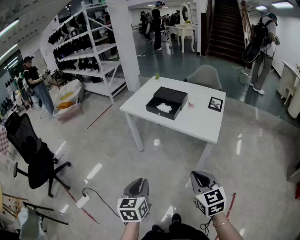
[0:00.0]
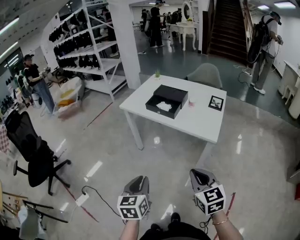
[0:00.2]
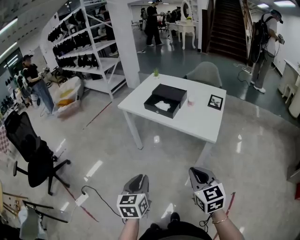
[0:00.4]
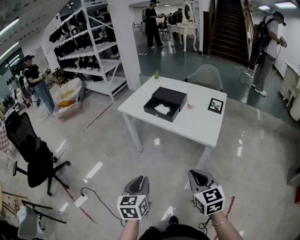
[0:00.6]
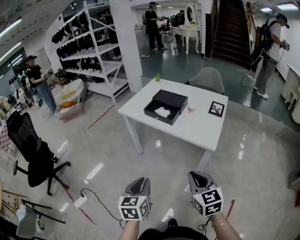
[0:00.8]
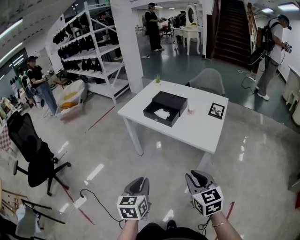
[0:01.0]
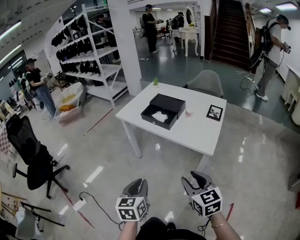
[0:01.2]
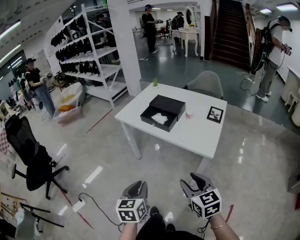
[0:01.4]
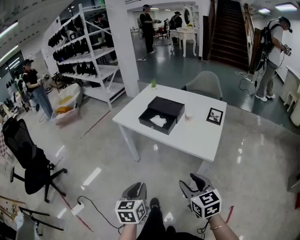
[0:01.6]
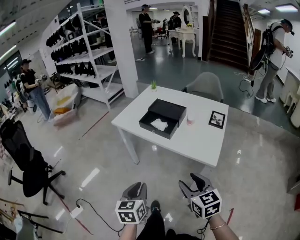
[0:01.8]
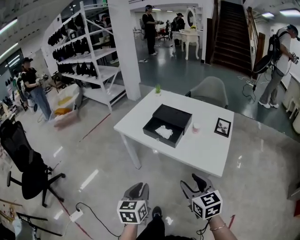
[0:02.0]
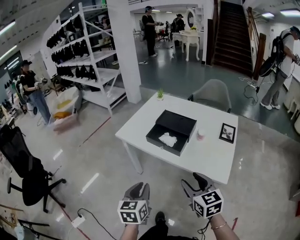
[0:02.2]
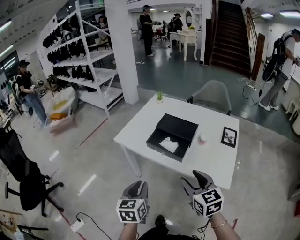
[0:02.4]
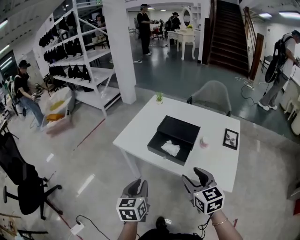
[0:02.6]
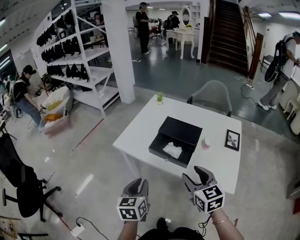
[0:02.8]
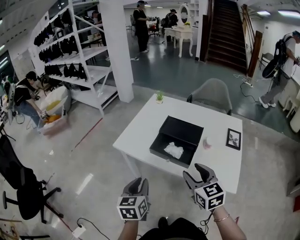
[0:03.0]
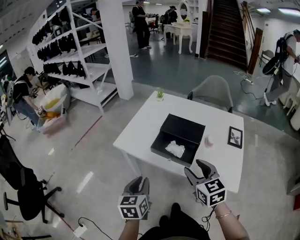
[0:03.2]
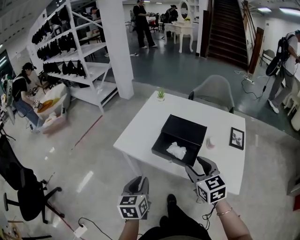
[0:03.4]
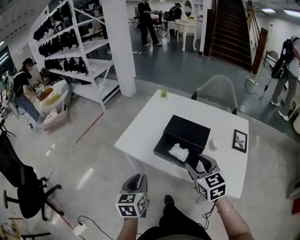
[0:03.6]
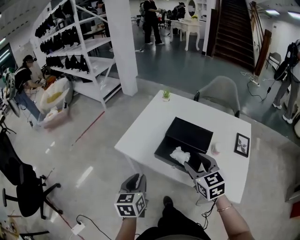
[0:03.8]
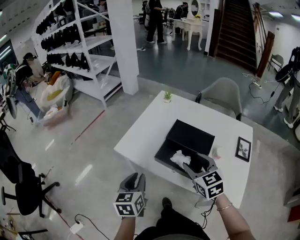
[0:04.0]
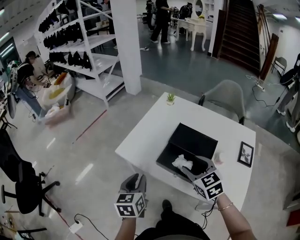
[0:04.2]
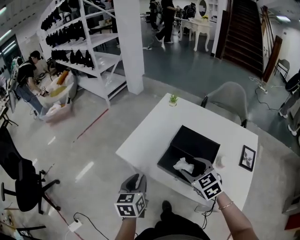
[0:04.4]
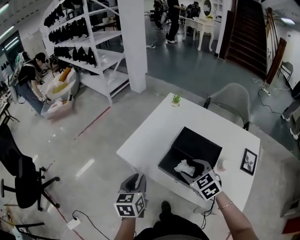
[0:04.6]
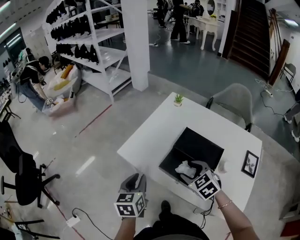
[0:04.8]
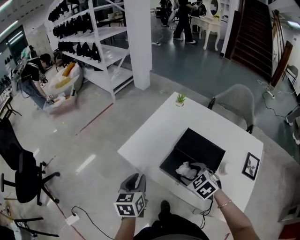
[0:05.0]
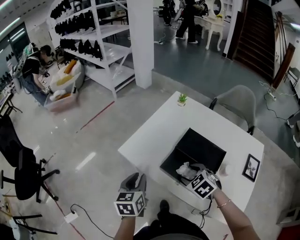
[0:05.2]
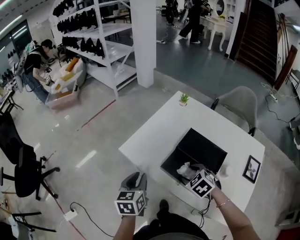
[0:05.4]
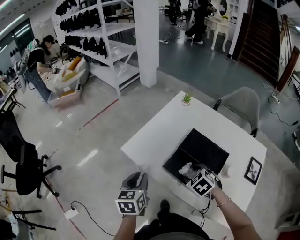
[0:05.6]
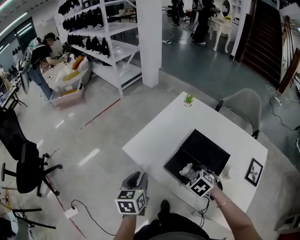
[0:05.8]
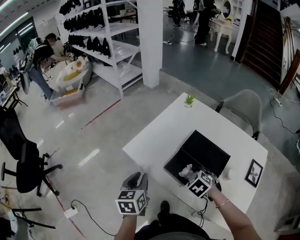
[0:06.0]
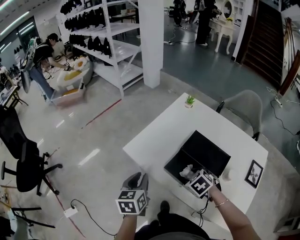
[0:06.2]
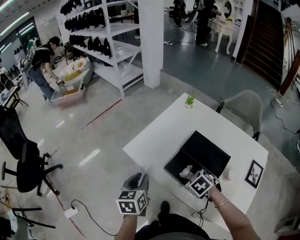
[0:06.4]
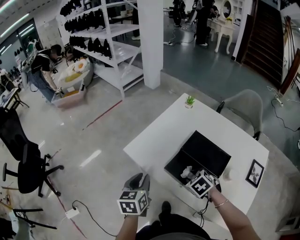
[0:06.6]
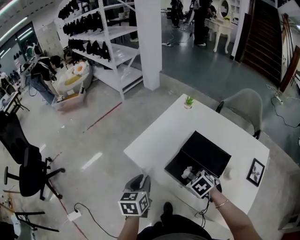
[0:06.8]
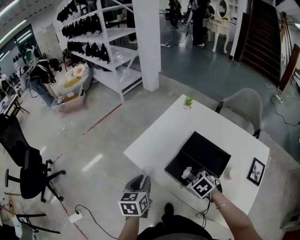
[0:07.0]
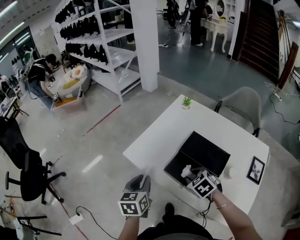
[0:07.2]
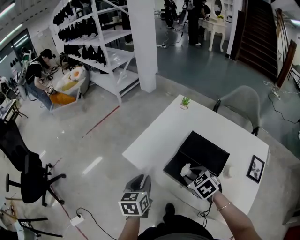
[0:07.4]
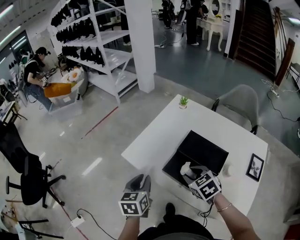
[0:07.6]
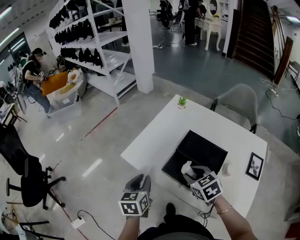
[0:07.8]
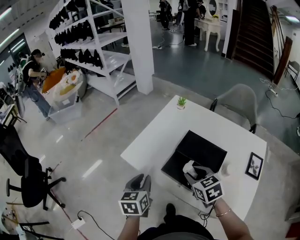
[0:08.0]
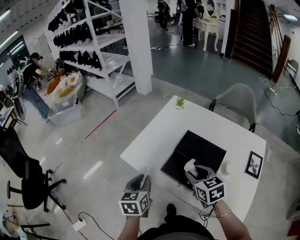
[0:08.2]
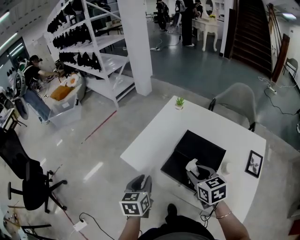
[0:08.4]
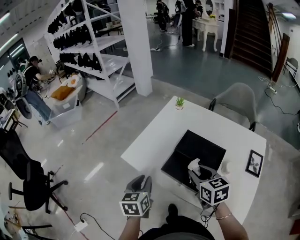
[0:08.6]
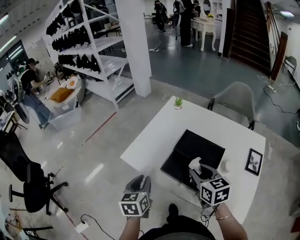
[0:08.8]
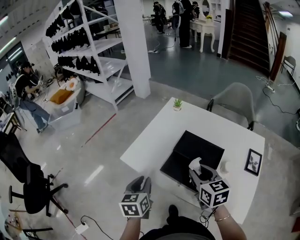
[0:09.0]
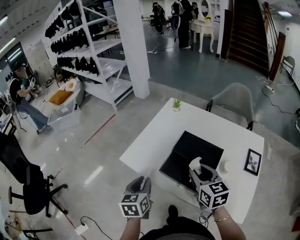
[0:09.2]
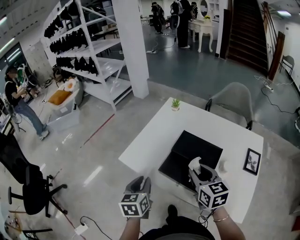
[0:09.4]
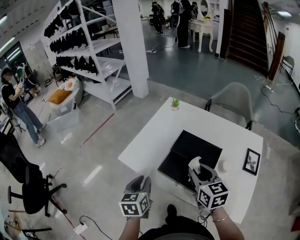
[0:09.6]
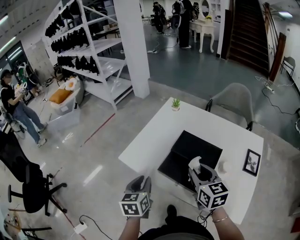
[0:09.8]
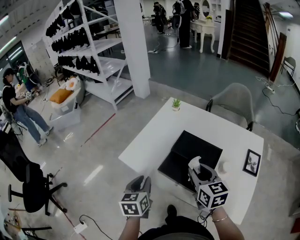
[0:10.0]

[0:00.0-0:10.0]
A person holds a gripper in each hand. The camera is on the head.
0:00.0 to 0:01.4: The right gripper is displaced forward by some 10 cm, and opens up, while the left gripper shifts approximately 10 cm forward and to the right.
0:01.4 to 0:02.8: Both grippers move forward, roughly 30 cm.
0:02.8 to 0:04.2: The two grippers go approximately 15 cm forward.
0:04.2 to 0:05.8: The right gripper travels downward by some 15 cm, and angles its fingers downward, by roughly 30 degrees.
0:05.8 to 0:07.2: The right gripper closes its fingers.
0:07.2 to 0:08.6: The right gripper heads upward, covering roughly 10 cm, and changes its angle by some 40 degrees.
0:08.6 to 0:10.0: The grippers move only a little.

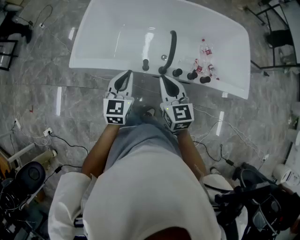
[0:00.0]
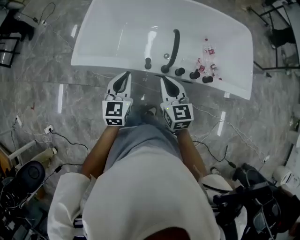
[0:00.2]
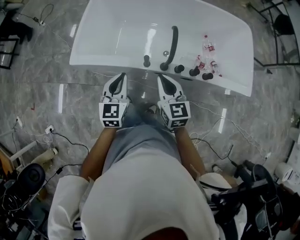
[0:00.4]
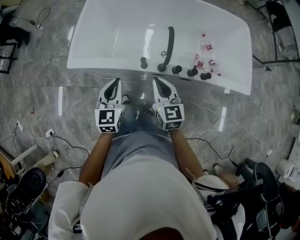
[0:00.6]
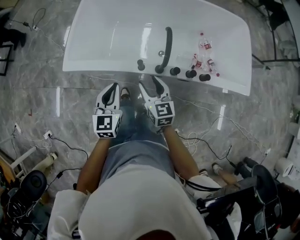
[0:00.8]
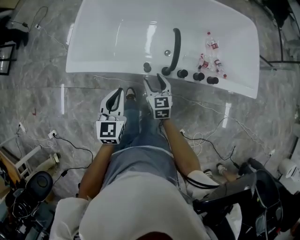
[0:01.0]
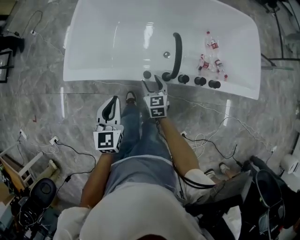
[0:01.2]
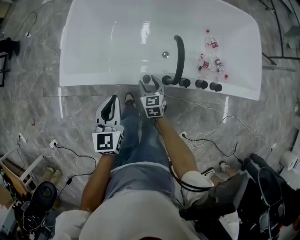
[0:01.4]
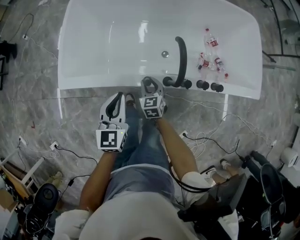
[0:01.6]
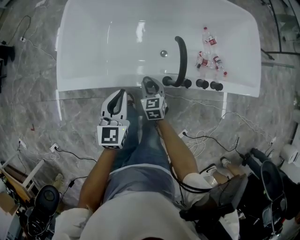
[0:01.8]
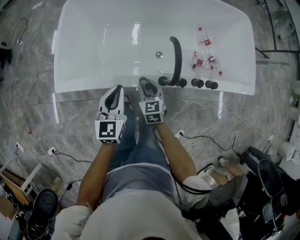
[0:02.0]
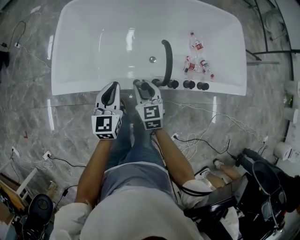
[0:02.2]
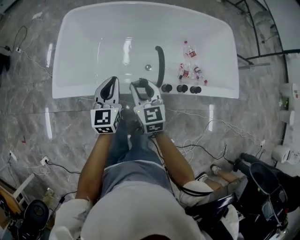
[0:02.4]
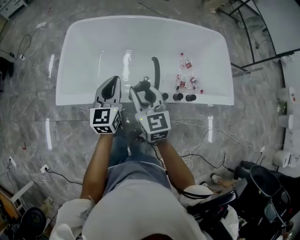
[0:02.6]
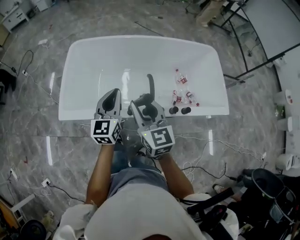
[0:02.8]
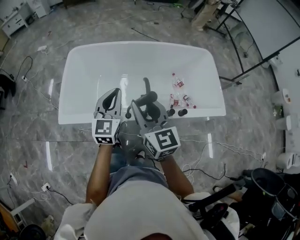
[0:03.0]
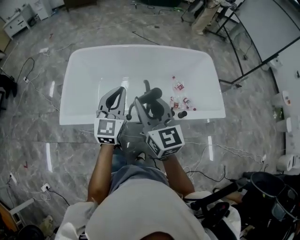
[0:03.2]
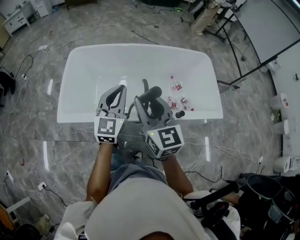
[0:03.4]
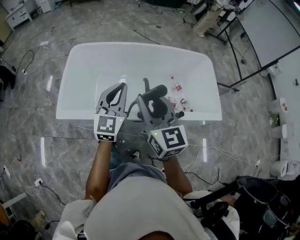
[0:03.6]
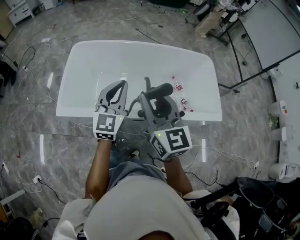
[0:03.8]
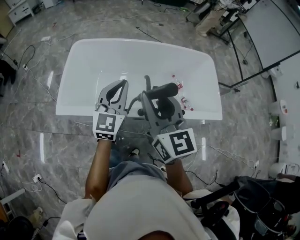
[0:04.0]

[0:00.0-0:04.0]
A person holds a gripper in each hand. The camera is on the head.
0:00.0 to 0:01.4: The left gripper travels downward by roughly 20 cm, while the right gripper is displaced downward by some 40 cm, and opens up.
0:01.4 to 0:02.6: The left gripper travels upward and forward by some 25 cm, while the right gripper moves upward, roughly 40 cm, and closes up.
0:02.6 to 0:04.0: The two grippers go approximately 25 cm upward.

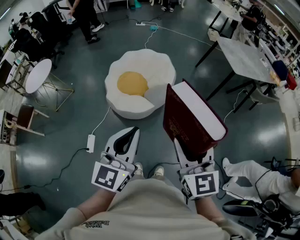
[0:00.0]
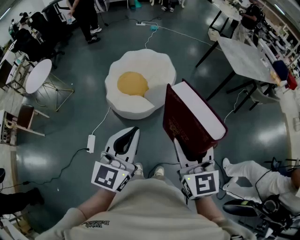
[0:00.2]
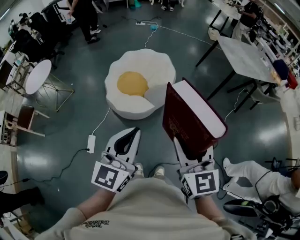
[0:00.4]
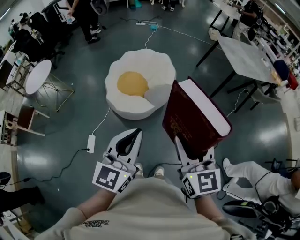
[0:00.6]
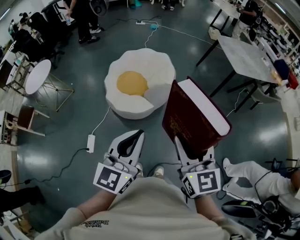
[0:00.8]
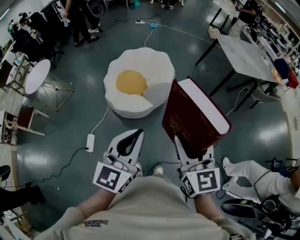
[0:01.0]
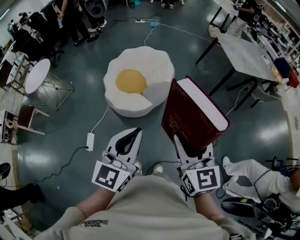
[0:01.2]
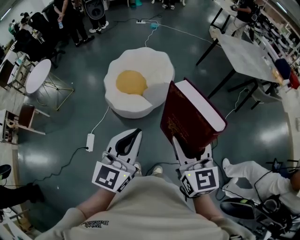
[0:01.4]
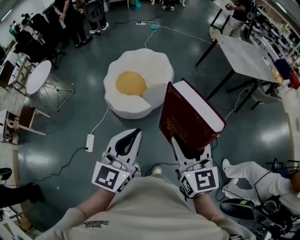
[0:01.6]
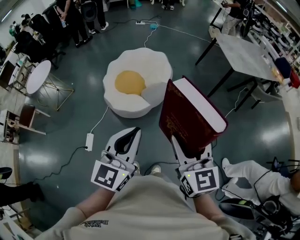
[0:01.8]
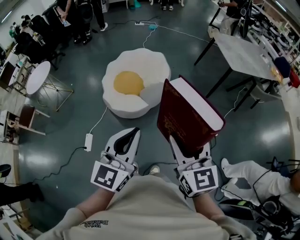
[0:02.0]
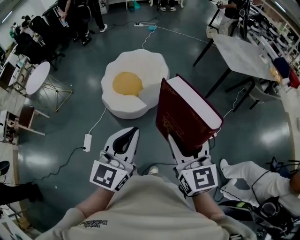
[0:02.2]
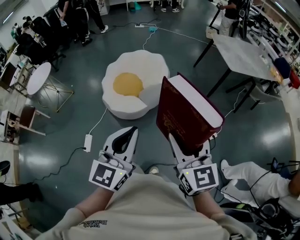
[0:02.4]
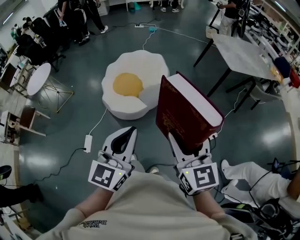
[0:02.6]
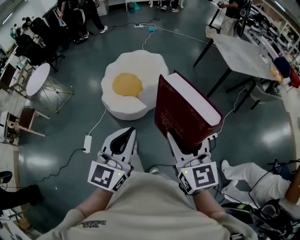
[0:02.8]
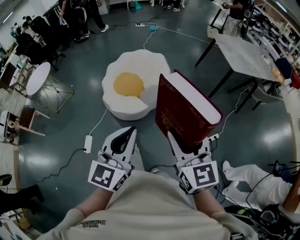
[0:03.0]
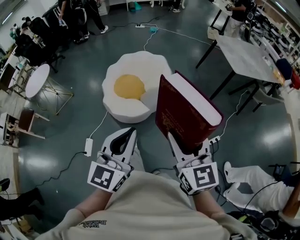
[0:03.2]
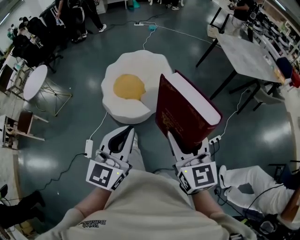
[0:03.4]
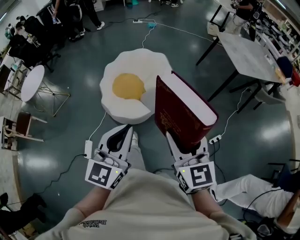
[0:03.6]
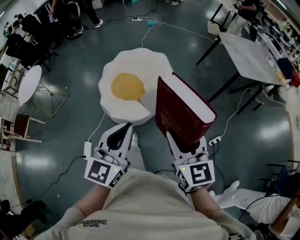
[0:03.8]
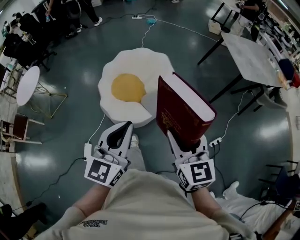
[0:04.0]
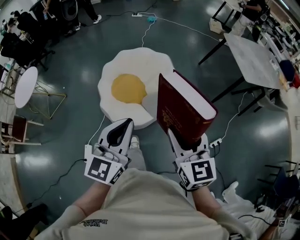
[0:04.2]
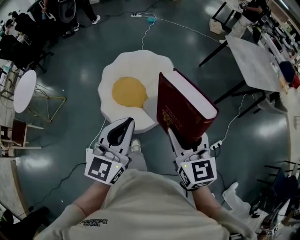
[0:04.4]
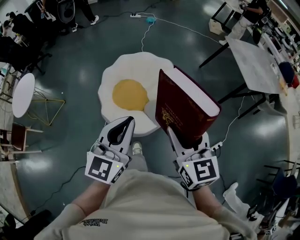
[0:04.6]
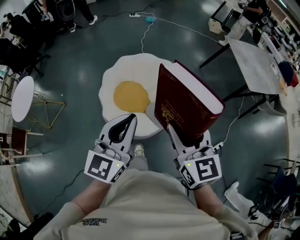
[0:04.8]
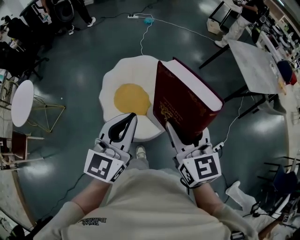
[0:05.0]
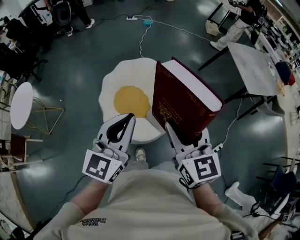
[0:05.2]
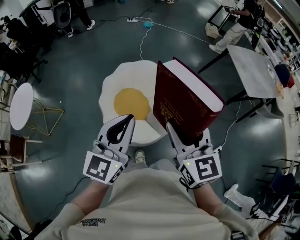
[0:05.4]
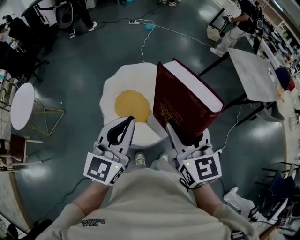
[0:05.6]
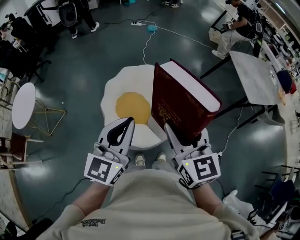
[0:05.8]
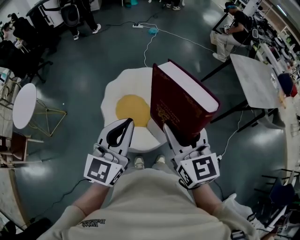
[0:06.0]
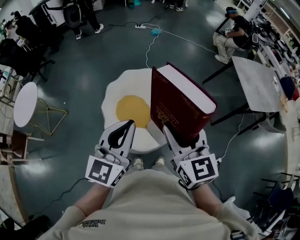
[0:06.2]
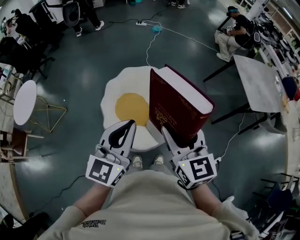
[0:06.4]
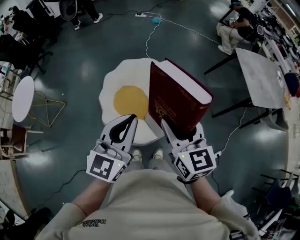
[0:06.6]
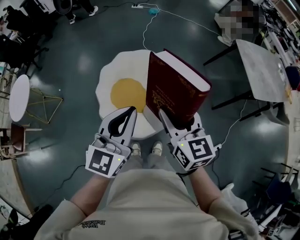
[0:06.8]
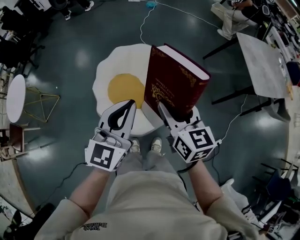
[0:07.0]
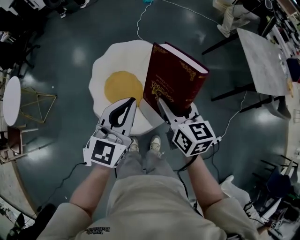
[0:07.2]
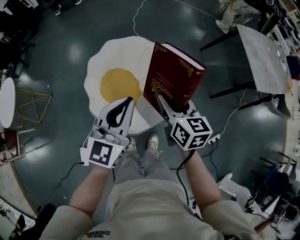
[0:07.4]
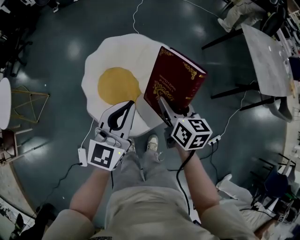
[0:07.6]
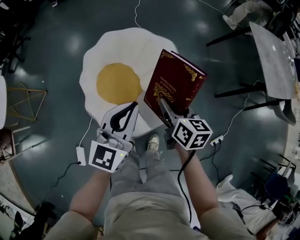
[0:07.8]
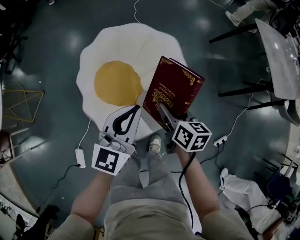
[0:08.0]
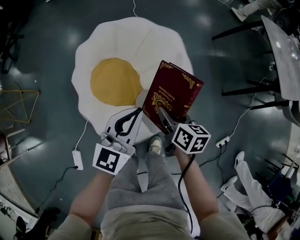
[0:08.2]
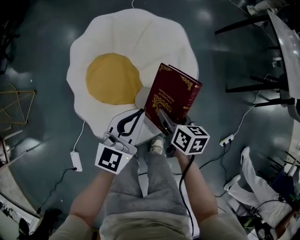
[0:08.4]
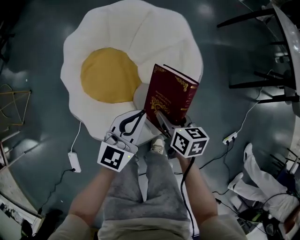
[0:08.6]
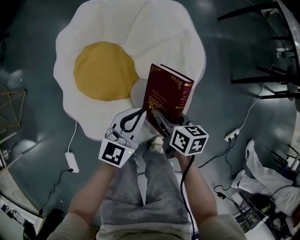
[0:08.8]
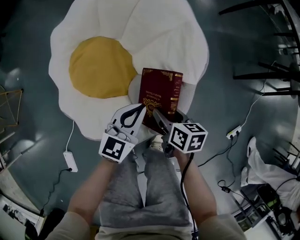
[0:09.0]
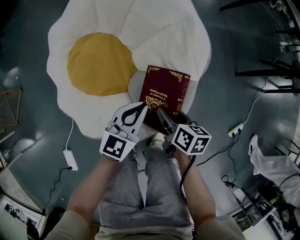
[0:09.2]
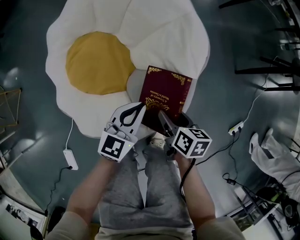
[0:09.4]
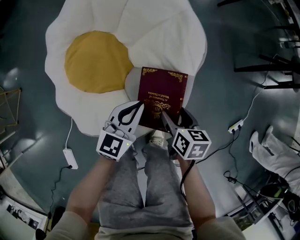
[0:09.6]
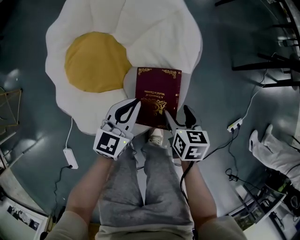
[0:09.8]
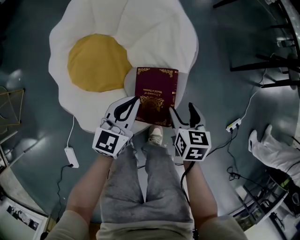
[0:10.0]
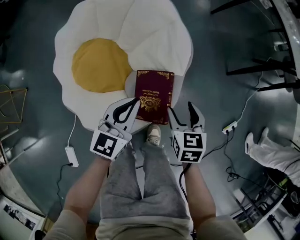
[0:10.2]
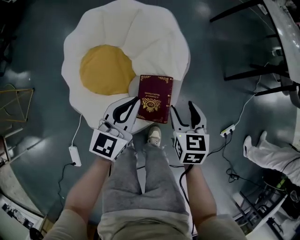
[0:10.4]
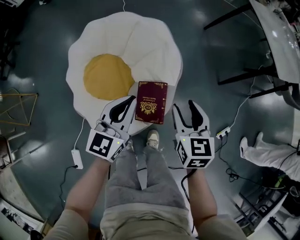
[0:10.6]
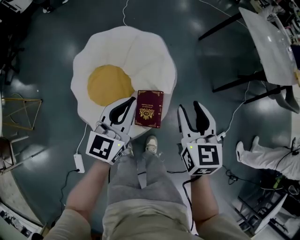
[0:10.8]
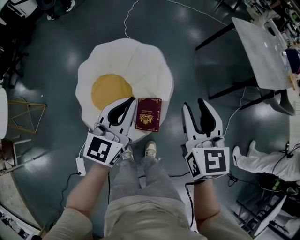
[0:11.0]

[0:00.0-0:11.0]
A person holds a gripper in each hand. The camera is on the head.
0:00.0 to 0:01.6: The grippers both shift to the right by about 5 cm.
0:01.6 to 0:03.2: There are only small adjustments of the grippers.
0:03.2 to 0:04.8: Both grippers move forward and to the left, roughly 40 cm.
0:04.8 to 0:06.2: The two grippers go approximately 10 cm forward.
0:06.2 to 0:07.8: Both grippers move downward and forward, approximately 35 cm. The right gripper swivels about 40 degrees.
0:07.8 to 0:09.4: Both grippers travel together downward, roughly 40 cm. The left gripper changes its angle by roughly 20 degrees. Meanwhile the right gripper rotates about 20 degrees.
0:09.4 to 0:11.0: The two grippers go some 50 cm upward. The right gripper swivels approximately 50 degrees.
